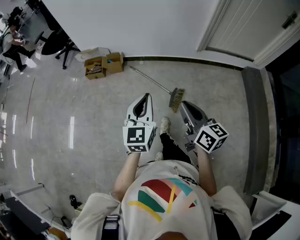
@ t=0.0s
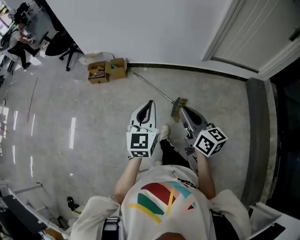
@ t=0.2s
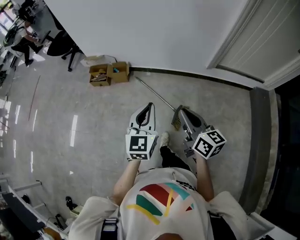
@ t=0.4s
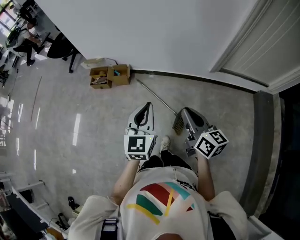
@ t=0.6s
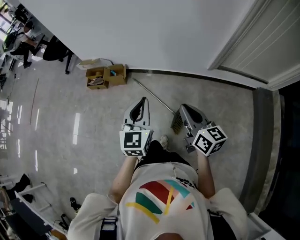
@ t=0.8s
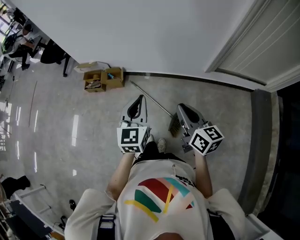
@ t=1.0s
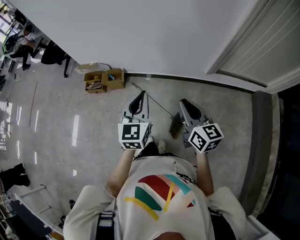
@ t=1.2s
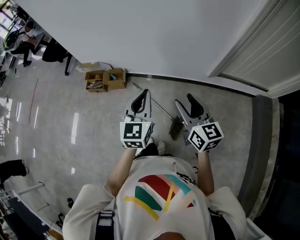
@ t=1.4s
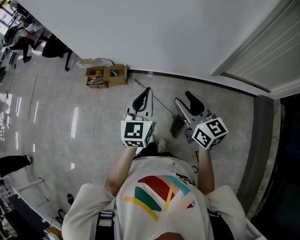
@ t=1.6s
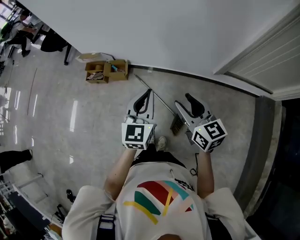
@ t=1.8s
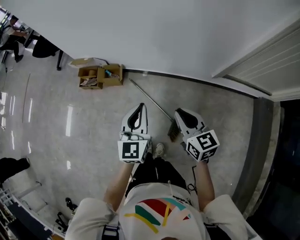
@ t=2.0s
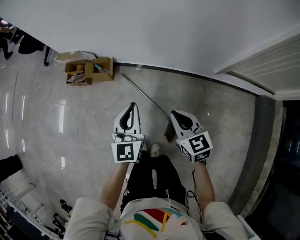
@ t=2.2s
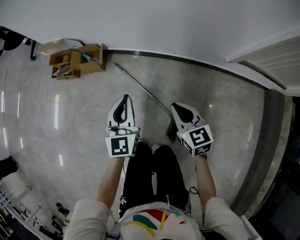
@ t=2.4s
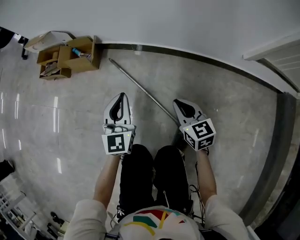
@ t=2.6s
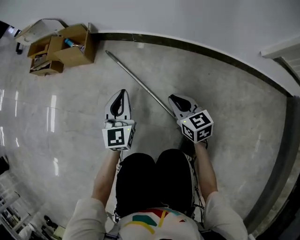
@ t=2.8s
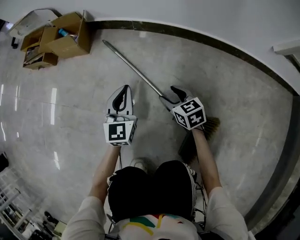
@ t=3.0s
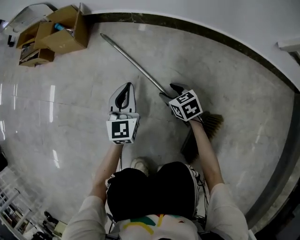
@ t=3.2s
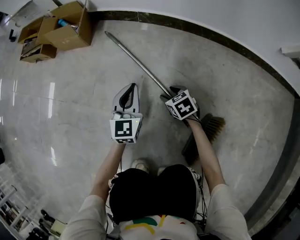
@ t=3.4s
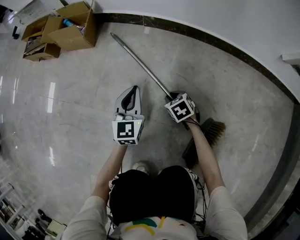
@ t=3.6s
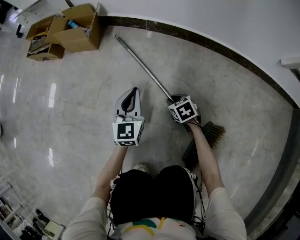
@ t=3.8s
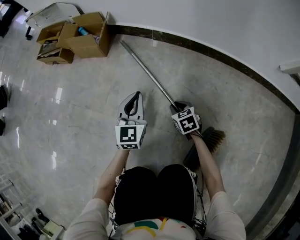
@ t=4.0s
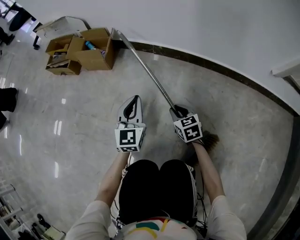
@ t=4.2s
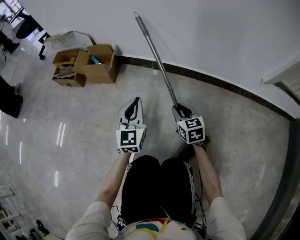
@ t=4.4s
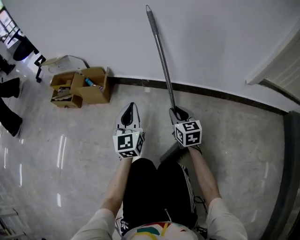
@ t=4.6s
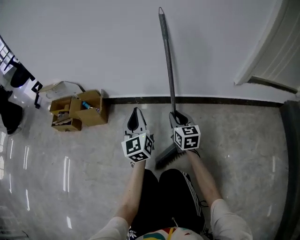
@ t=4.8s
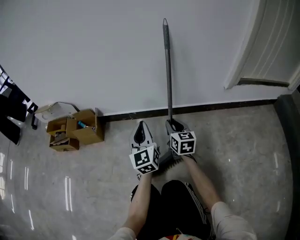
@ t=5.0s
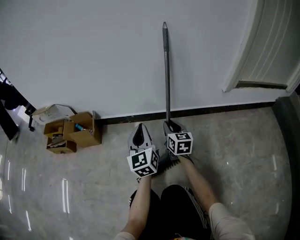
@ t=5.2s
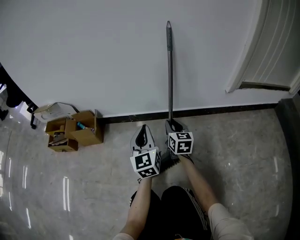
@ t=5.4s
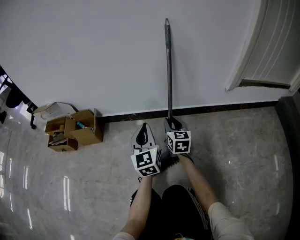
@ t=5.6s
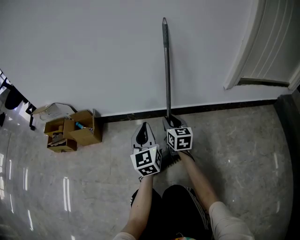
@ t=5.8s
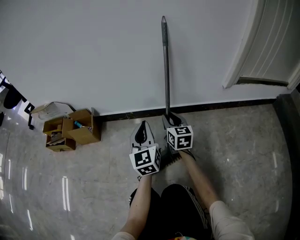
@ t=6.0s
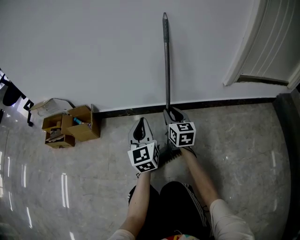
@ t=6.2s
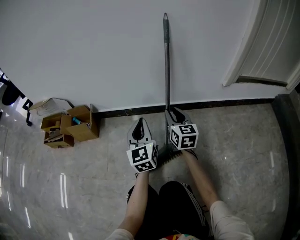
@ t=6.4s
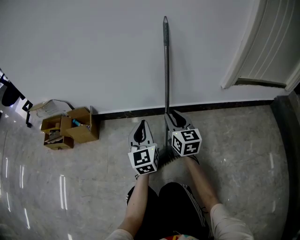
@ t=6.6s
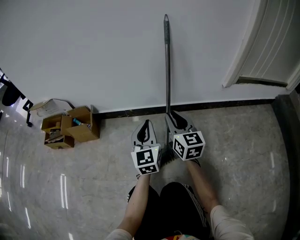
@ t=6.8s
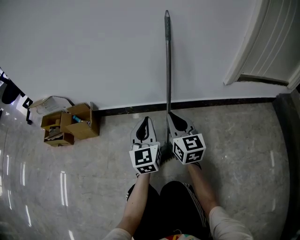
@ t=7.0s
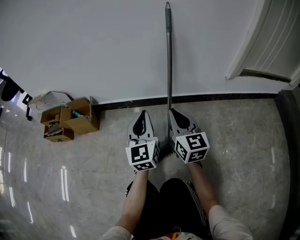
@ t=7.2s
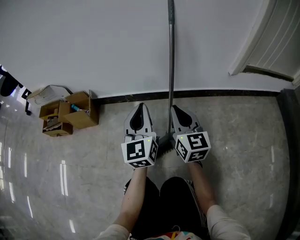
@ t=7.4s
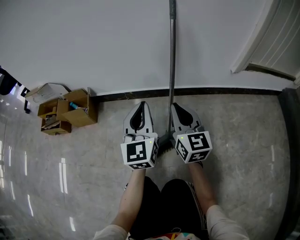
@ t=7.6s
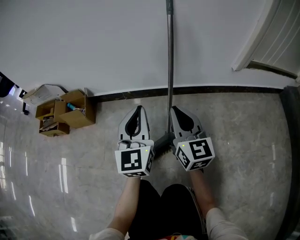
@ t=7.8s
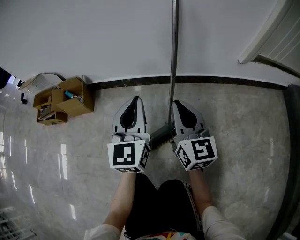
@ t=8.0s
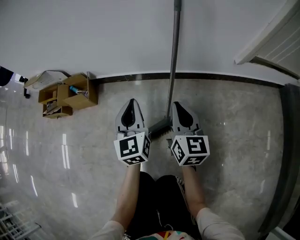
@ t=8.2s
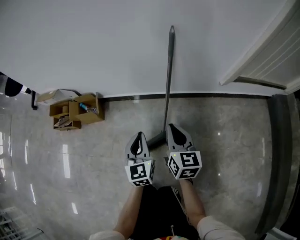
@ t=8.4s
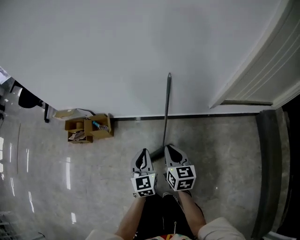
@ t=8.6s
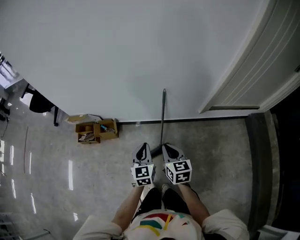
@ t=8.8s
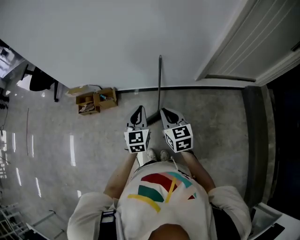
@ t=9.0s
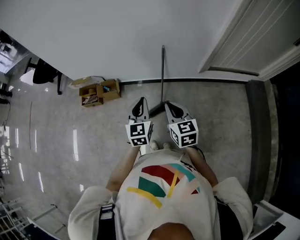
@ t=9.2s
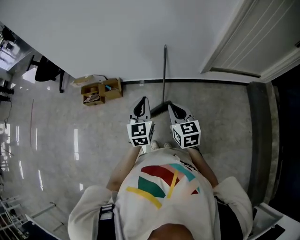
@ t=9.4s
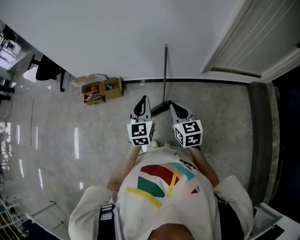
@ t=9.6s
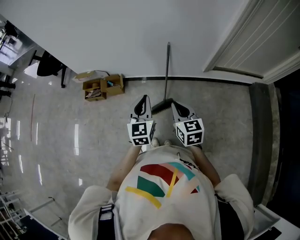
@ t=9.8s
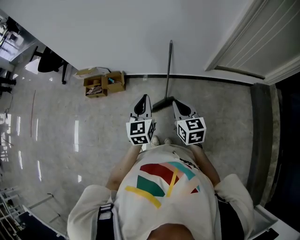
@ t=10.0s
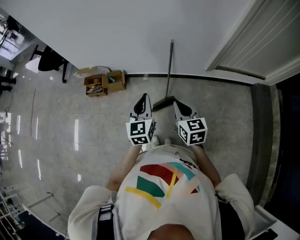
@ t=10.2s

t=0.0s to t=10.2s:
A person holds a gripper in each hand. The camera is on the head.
t=0.0s to t=1.4s: Both grippers travel together forward, roughly 35 cm. The right gripper opens up.
t=1.4s to t=3.0s: The grippers both shift downward by about 90 cm. The right gripper tilts its fingers some 30 degrees downward, and closes, then opens again.
t=3.0s to t=4.4s: Both grippers move upward, approximately 10 cm. The right gripper closes its fingers.
t=4.4s to t=5.8s: The left gripper heads to the right and upward, covering some 15 cm, while the right gripper travels upward, to the right and forward by approximately 15 cm, and changes its angle by roughly 30 degrees.
t=5.8s to t=7.2s: The right gripper moves upward and backward, approximately 10 cm.
t=7.2s to t=8.8s: Both grippers travel together upward, roughly 50 cm. The right gripper turns by approximately 20 degrees.
t=8.8s to t=10.2s: The grippers both shift backward and upward by some 15 cm.

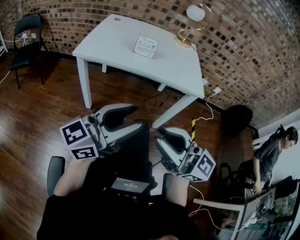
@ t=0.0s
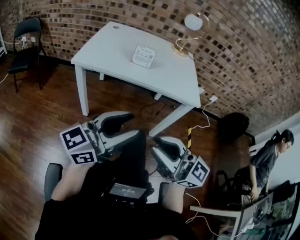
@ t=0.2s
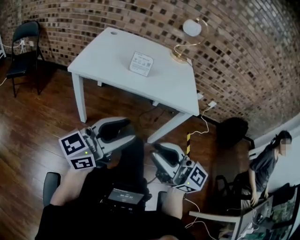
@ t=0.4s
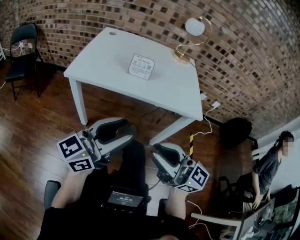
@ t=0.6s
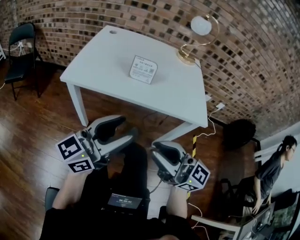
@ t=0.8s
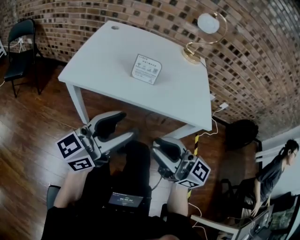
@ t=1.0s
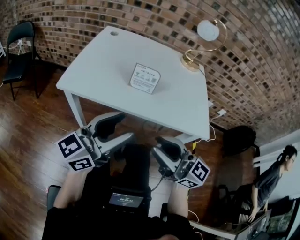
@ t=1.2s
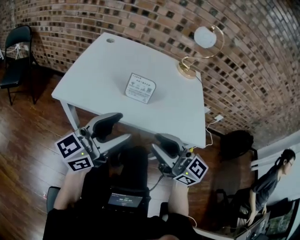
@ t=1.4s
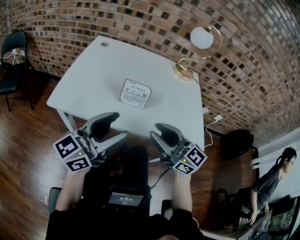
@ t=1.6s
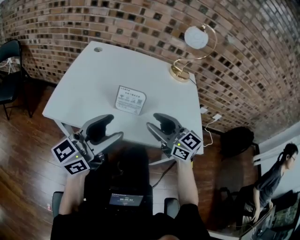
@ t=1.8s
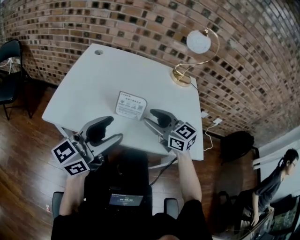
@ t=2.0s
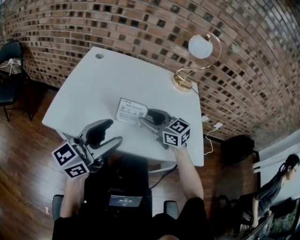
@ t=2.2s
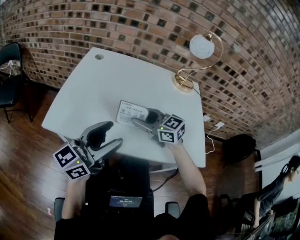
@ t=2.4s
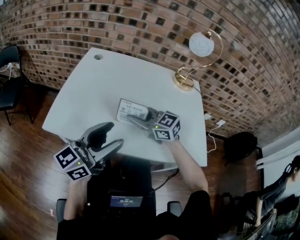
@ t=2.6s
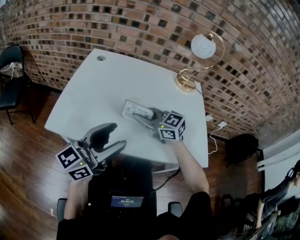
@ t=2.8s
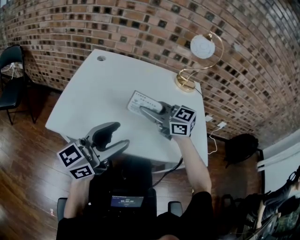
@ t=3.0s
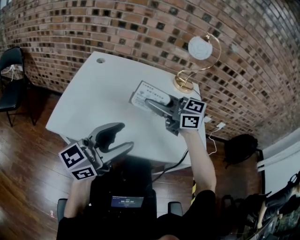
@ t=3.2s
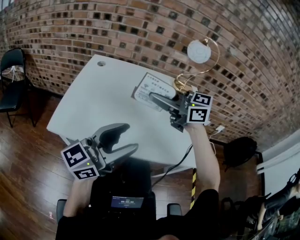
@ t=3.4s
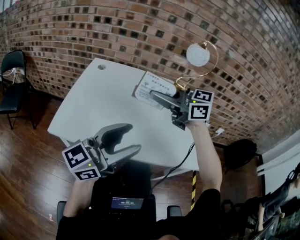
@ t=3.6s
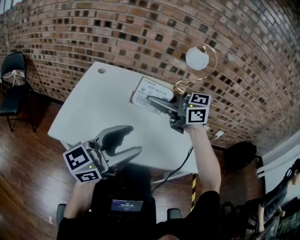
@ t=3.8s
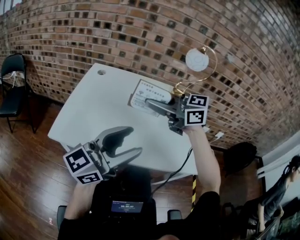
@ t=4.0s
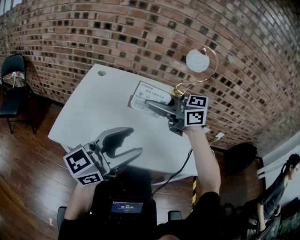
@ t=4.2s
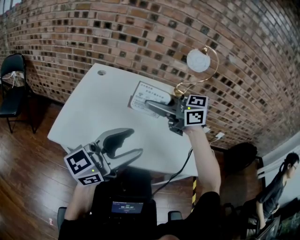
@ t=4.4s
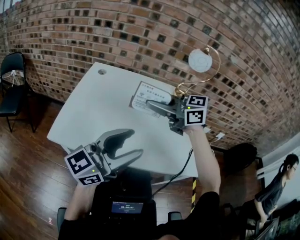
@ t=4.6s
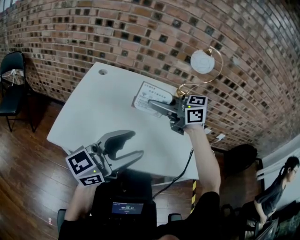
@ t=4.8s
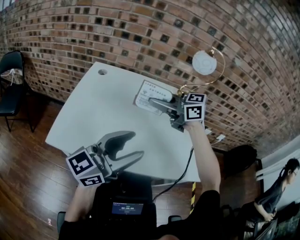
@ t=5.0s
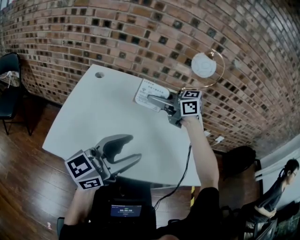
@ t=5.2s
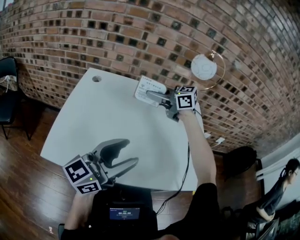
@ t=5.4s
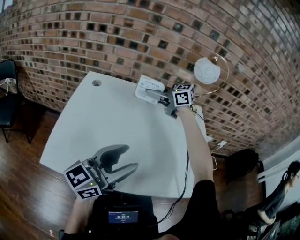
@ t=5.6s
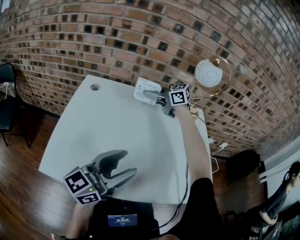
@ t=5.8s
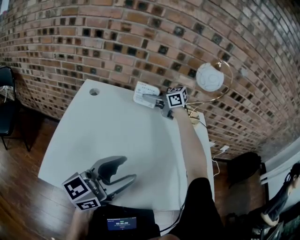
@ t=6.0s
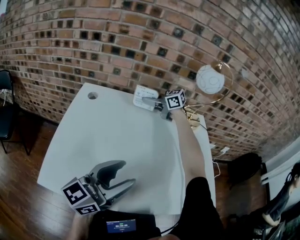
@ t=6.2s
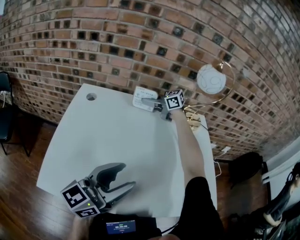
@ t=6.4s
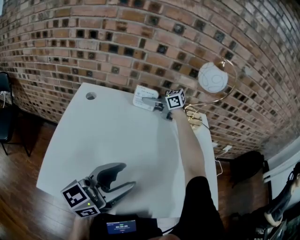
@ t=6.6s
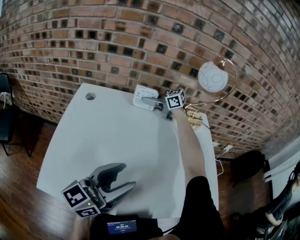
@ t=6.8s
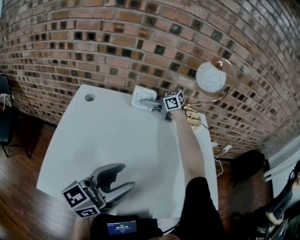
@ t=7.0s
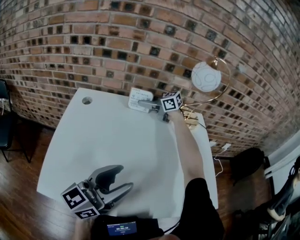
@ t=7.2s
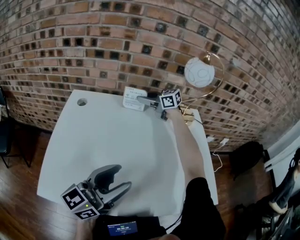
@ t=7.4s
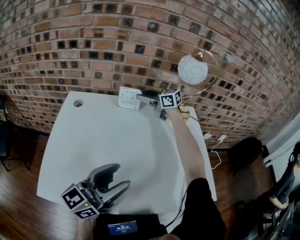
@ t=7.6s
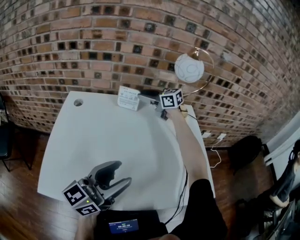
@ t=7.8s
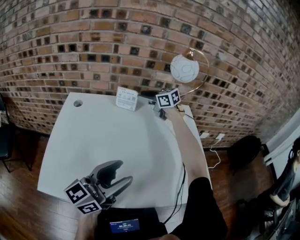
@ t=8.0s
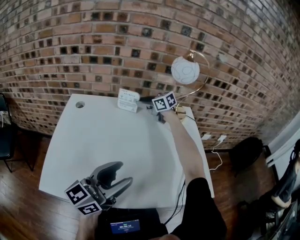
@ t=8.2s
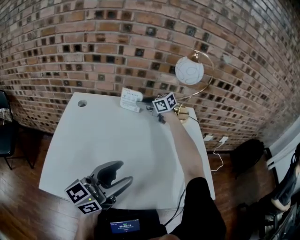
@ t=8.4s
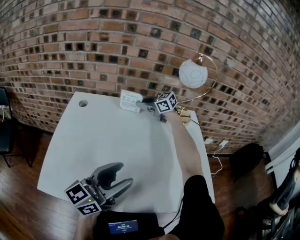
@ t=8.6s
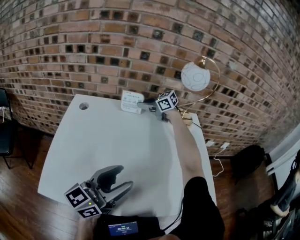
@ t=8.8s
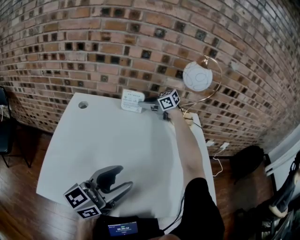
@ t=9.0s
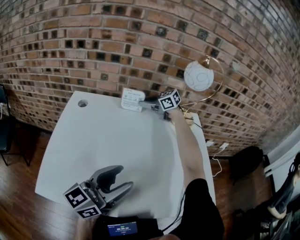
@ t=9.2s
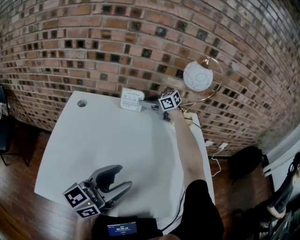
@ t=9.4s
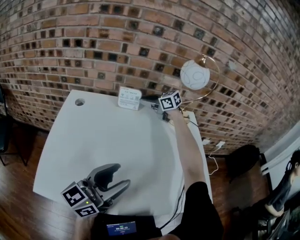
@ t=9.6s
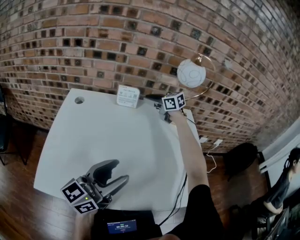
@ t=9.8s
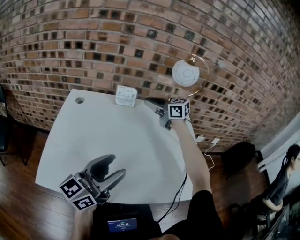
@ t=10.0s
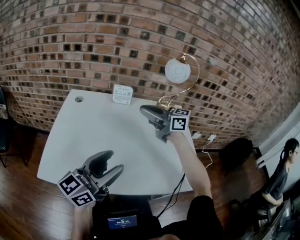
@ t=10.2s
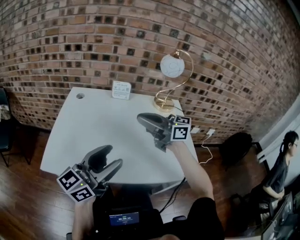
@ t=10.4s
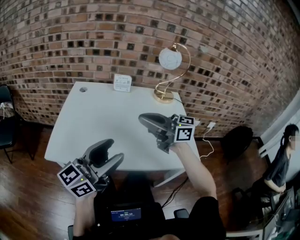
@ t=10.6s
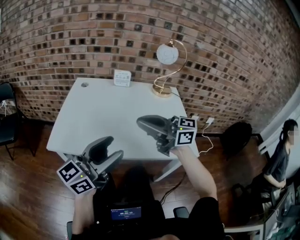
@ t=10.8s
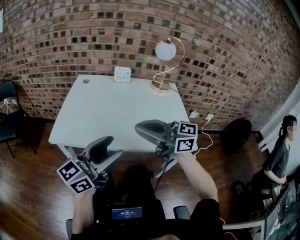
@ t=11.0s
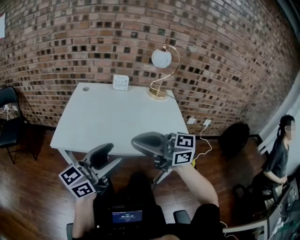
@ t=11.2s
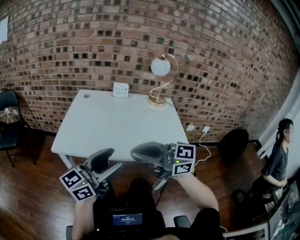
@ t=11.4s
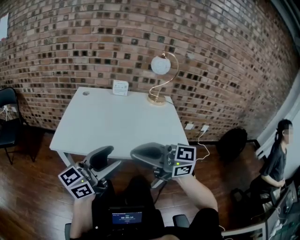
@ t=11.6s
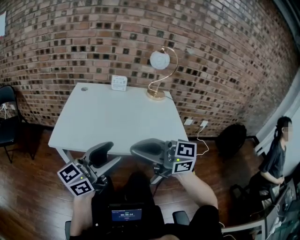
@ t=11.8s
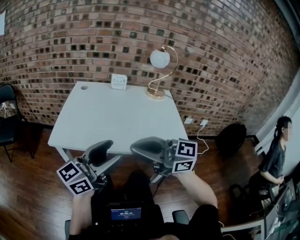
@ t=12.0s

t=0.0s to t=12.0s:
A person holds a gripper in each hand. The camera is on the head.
t=0.0s to t=1.6s: Both grippers move forward, roughly 30 cm.
t=1.6s to t=3.0s: The left gripper is displaced forward by approximately 5 cm. The right gripper heads forward, covering roughly 20 cm, rotates roughly 20 degrees, and closes its fingers.
t=3.0s to t=4.4s: The left gripper moves upward, roughly 5 cm, while the right gripper is displaced upward by roughly 10 cm.
t=4.4s to t=6.0s: The right gripper shifts by roughly 35 cm, while the left gripper shifts by some 10 cm.
t=6.0s to t=7.6s: The right gripper moves roughly 10 cm, and opens.
t=7.6s to t=9.0s: The grippers make only small movements.
t=9.0s to t=10.4s: The right gripper heads backward and upward, covering roughly 40 cm, and tips its fingers upward by approximately 30 degrees; the left gripper is displaced backward and upward by about 10 cm.
t=10.4s to t=12.0s: The right gripper moves about 30 cm. Meanwhile the left gripper changes place by approximately 15 cm.

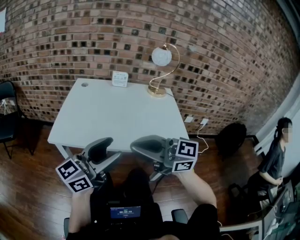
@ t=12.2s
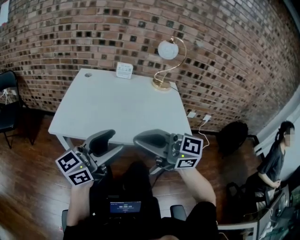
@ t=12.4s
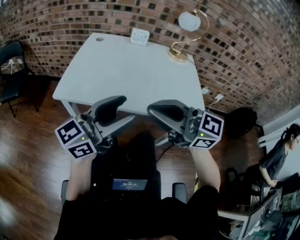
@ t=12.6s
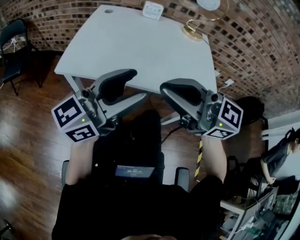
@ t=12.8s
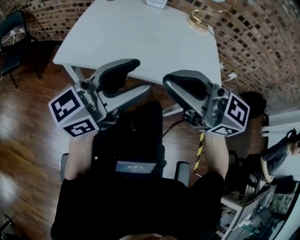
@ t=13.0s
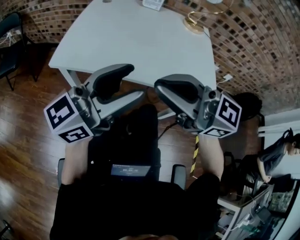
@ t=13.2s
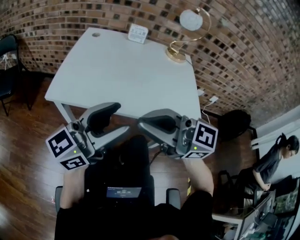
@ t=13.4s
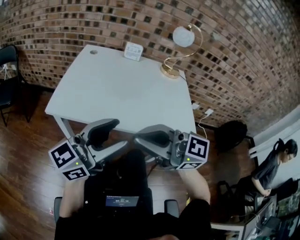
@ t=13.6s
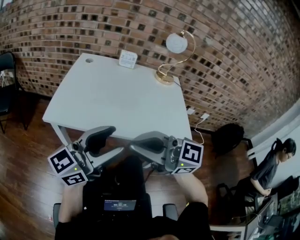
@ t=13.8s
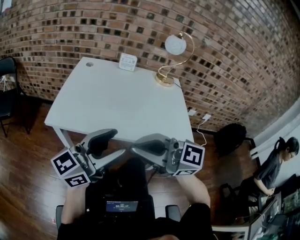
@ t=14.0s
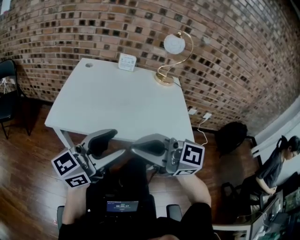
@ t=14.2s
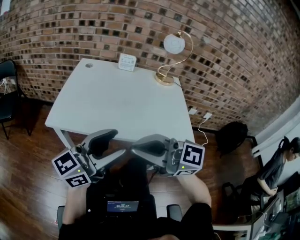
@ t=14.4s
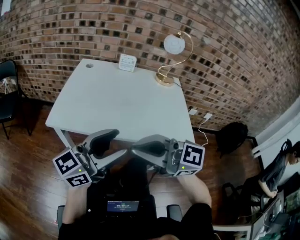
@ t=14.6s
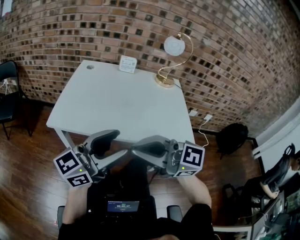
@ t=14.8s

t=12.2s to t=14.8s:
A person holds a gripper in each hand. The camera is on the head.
t=12.2s to t=14.8s: The grippers make only small movements.
